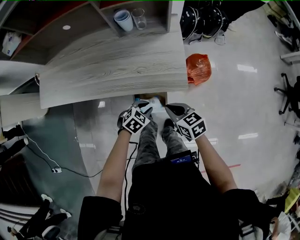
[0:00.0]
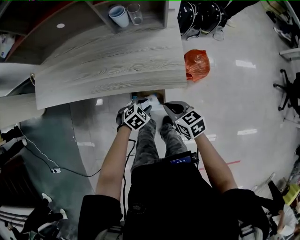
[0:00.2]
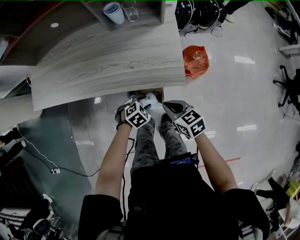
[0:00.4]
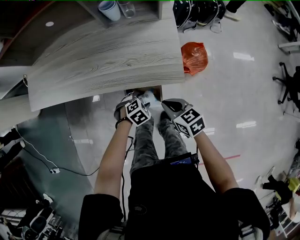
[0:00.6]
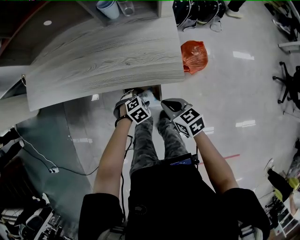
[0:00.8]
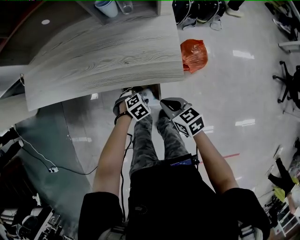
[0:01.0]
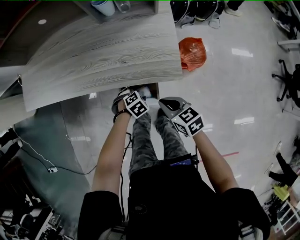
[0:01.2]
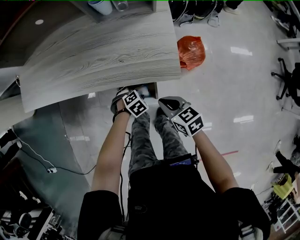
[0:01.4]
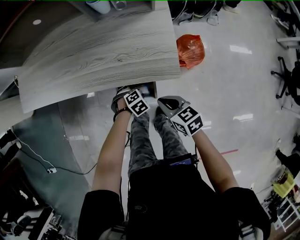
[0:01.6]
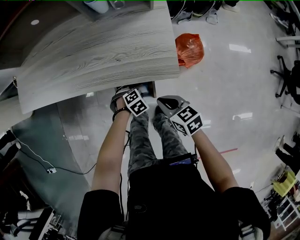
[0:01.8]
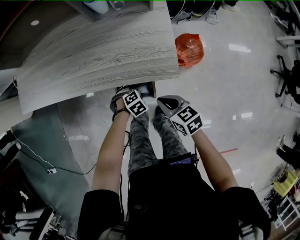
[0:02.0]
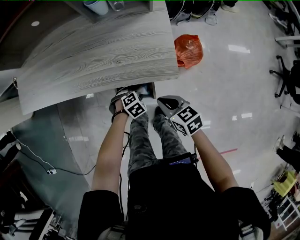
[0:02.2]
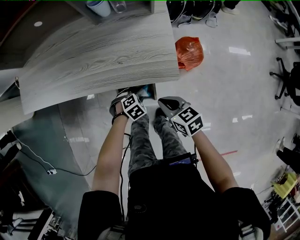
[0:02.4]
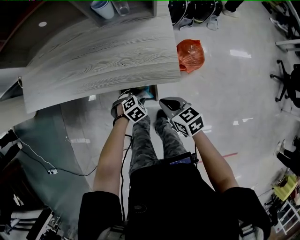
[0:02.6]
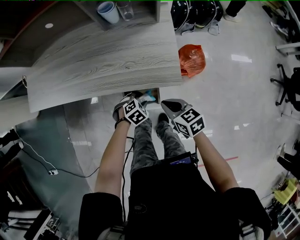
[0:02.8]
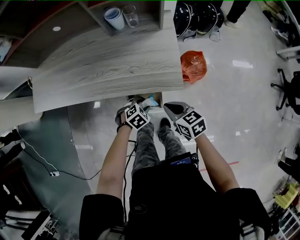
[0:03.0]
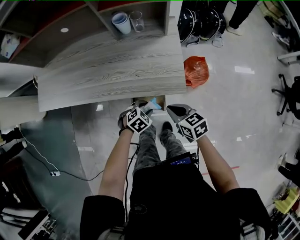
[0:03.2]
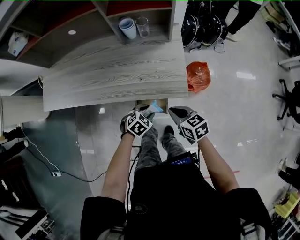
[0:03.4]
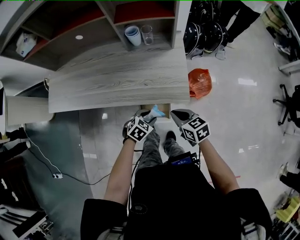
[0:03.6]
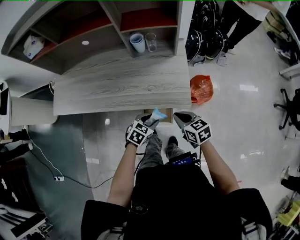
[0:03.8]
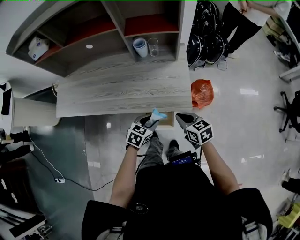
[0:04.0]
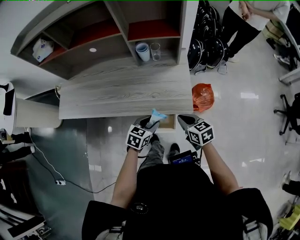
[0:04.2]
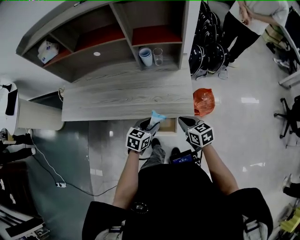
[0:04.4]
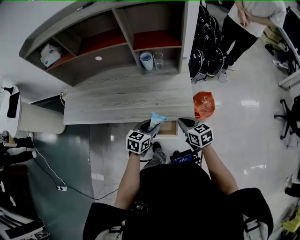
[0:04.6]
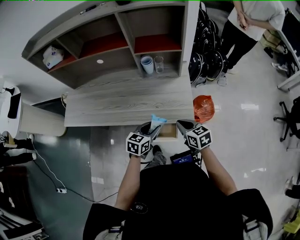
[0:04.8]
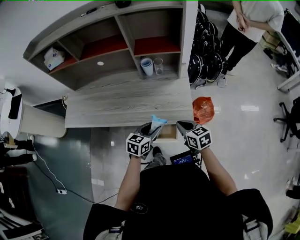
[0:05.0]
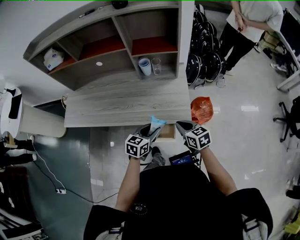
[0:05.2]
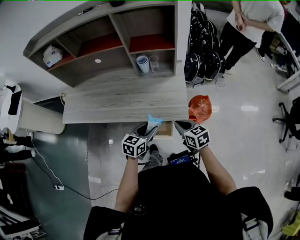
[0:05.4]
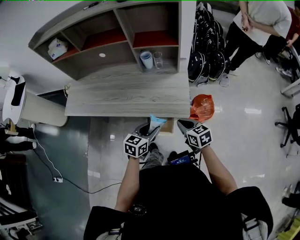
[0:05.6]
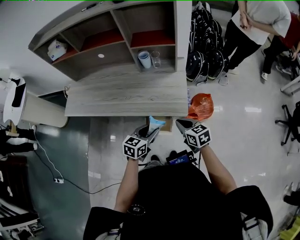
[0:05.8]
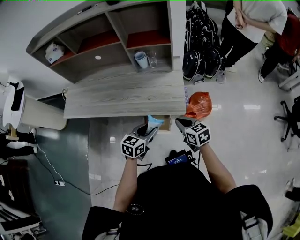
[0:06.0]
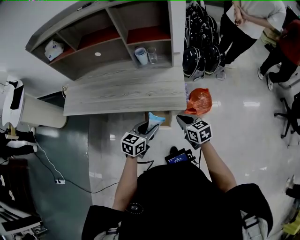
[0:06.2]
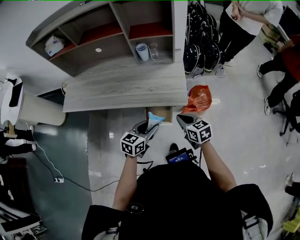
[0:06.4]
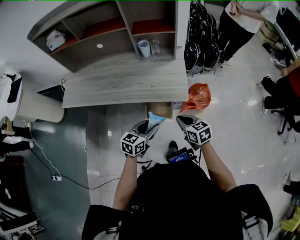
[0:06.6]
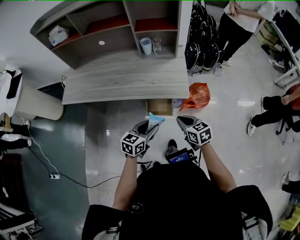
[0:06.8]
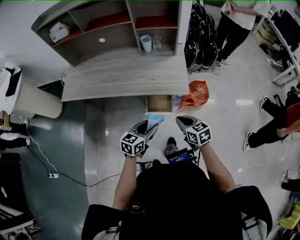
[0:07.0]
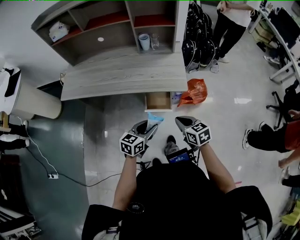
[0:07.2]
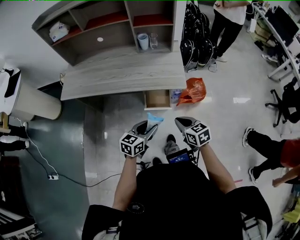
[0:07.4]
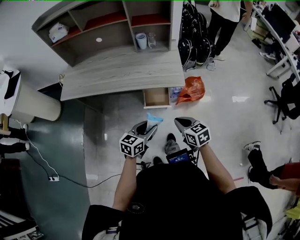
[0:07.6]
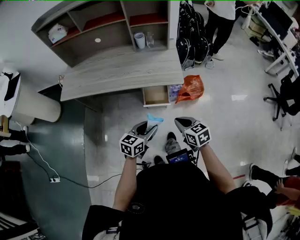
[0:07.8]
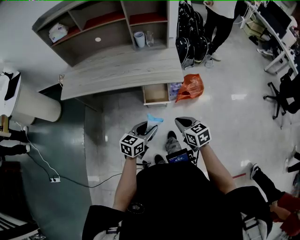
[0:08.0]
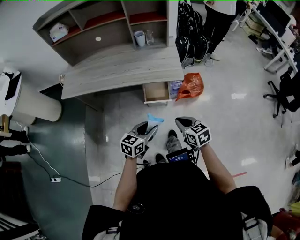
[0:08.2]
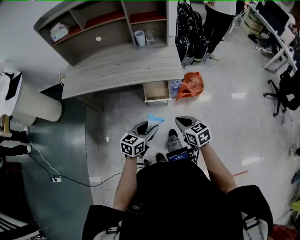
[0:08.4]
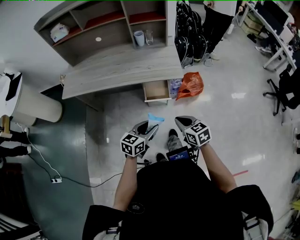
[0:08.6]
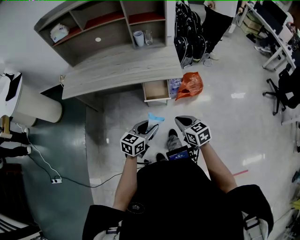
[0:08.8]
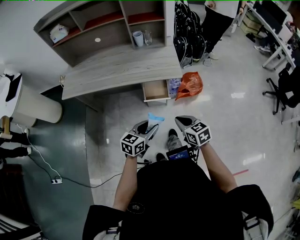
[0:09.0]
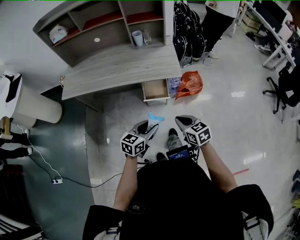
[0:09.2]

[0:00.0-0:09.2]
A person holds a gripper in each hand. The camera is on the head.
0:00.0 to 0:01.6: The left gripper travels downward by approximately 15 cm, turns by roughly 20 degrees, and opens its fingers. The right gripper is displaced downward by approximately 5 cm.
0:01.6 to 0:03.0: The left gripper heads upward, covering about 10 cm.
0:03.0 to 0:04.6: The left gripper shifts roughly 20 cm upward, and angles its fingers upward, by approximately 30 degrees, while the right gripper goes some 10 cm upward.
0:04.6 to 0:06.2: The grippers both shift backward by approximately 5 cm.
0:06.2 to 0:07.6: The two grippers go about 20 cm backward.
0:07.6 to 0:09.2: Both grippers travel together backward, some 5 cm.

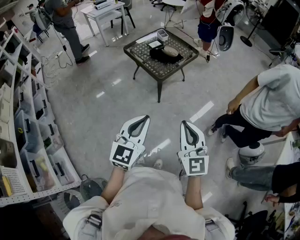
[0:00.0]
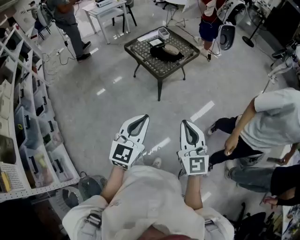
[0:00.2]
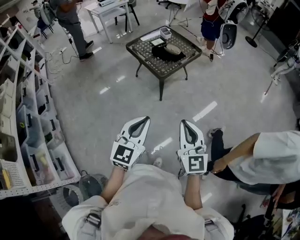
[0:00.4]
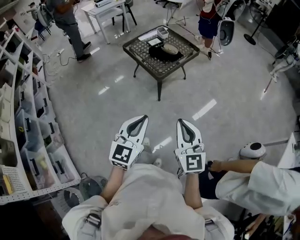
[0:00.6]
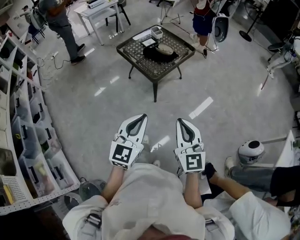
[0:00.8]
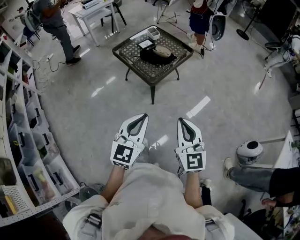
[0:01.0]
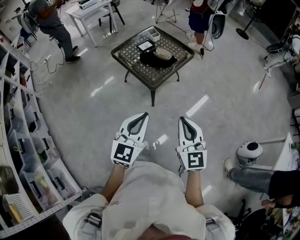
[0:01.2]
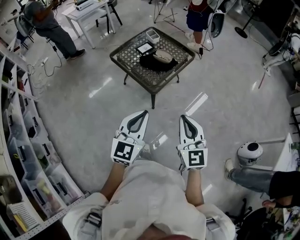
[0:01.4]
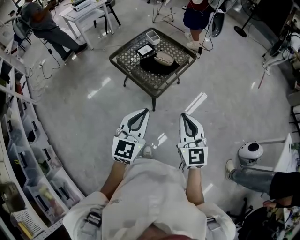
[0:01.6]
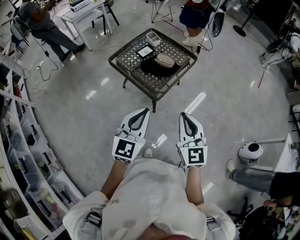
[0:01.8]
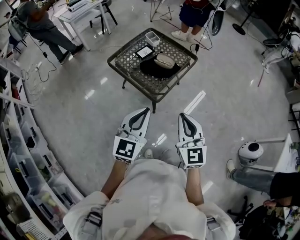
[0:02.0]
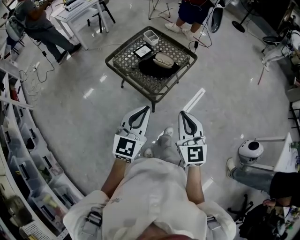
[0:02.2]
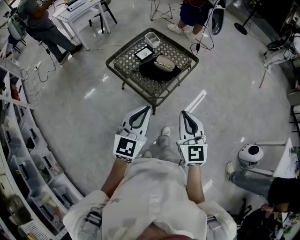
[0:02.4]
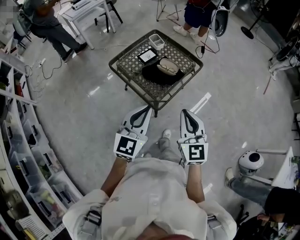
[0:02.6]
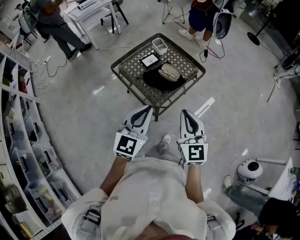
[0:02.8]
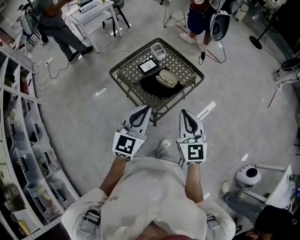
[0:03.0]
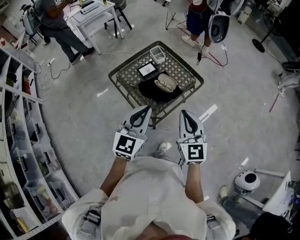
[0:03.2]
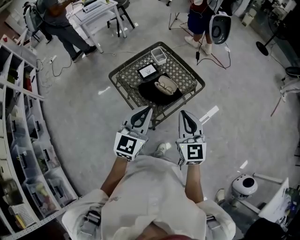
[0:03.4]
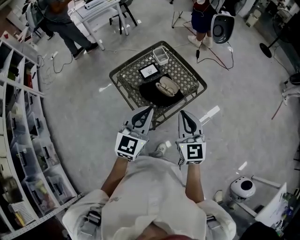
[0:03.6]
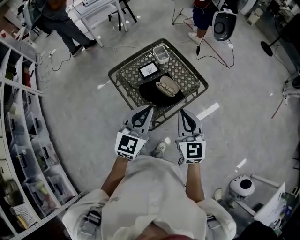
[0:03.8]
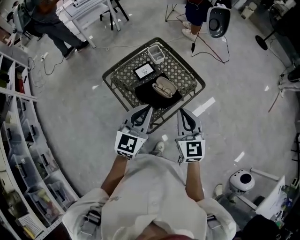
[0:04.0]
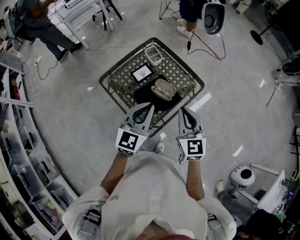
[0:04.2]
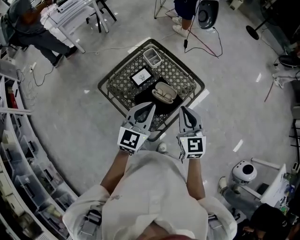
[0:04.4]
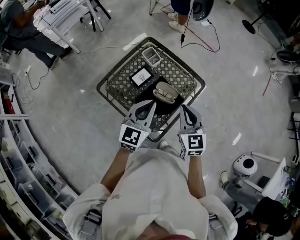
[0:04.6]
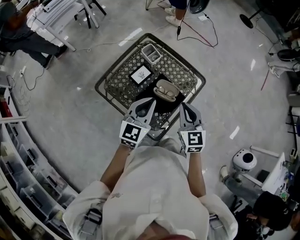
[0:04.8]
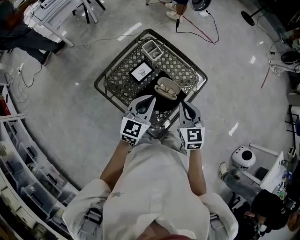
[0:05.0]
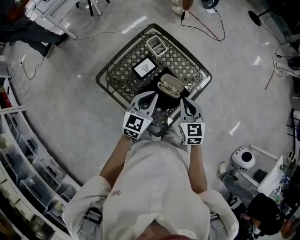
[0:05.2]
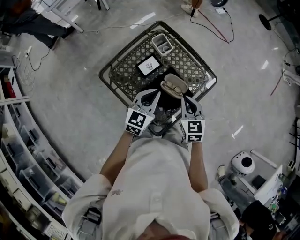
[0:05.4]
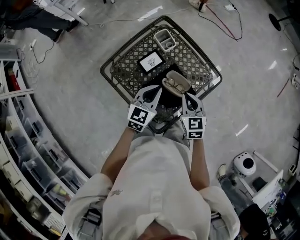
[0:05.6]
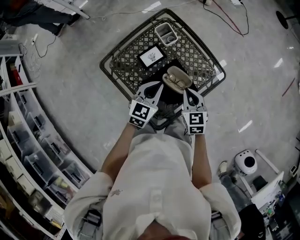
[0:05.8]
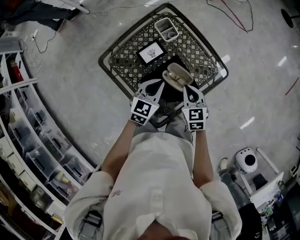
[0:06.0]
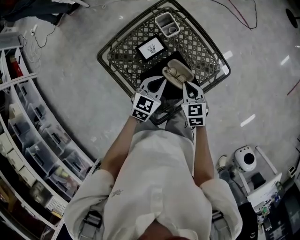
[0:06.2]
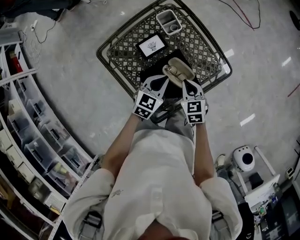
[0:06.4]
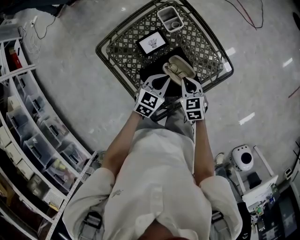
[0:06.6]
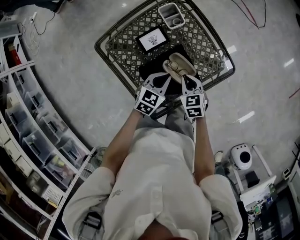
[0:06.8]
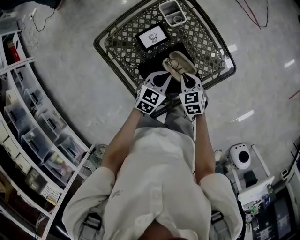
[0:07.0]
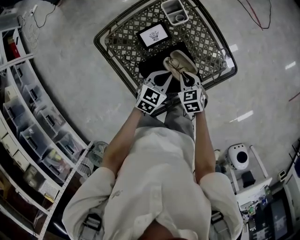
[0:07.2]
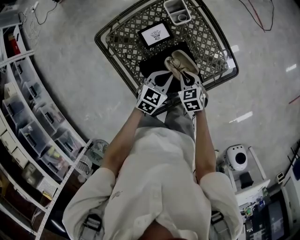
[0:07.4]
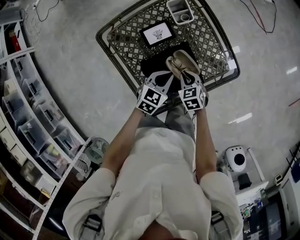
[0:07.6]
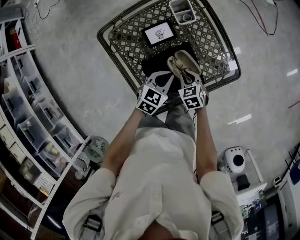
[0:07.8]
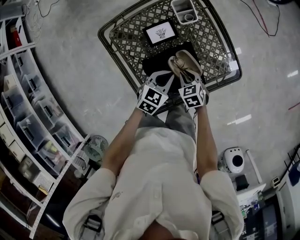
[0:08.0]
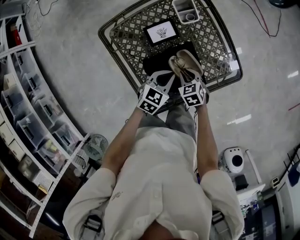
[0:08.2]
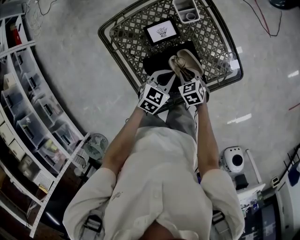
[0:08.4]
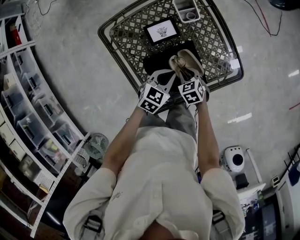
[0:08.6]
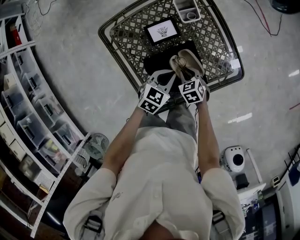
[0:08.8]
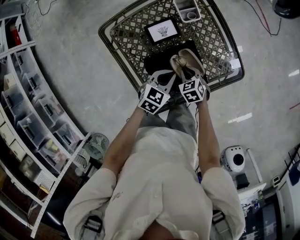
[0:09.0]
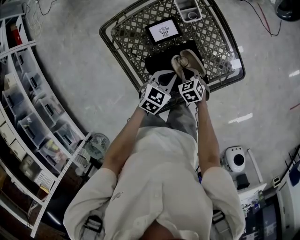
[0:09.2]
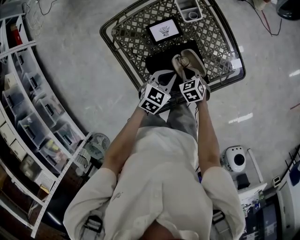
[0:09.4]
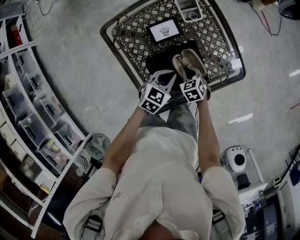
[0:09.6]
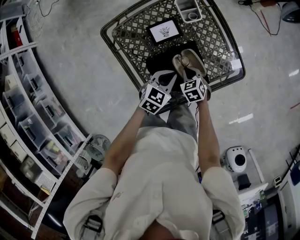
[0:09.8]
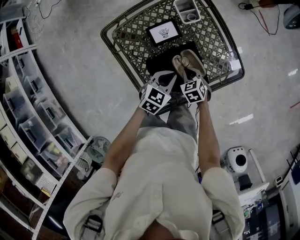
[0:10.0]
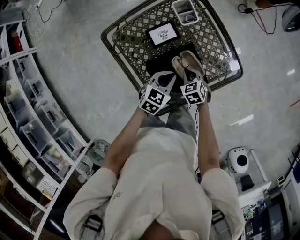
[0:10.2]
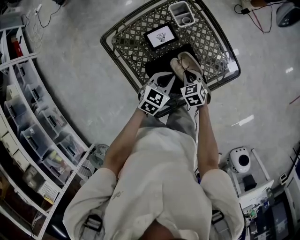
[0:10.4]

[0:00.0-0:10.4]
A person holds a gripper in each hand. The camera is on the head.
0:00.0 to 0:01.4: The two grippers go roughly 25 cm forward.
0:01.4 to 0:03.0: The two grippers go roughly 30 cm forward.
0:03.0 to 0:04.4: The grippers both shift forward by about 20 cm.
0:04.4 to 0:06.0: Both grippers move downward and forward, roughly 25 cm. The right gripper changes its angle by roughly 30 degrees. Meanwhile the left gripper swivels about 20 degrees.
0:06.0 to 0:07.4: Both grippers travel together downward, about 10 cm. The right gripper turns by about 20 degrees.
0:07.4 to 0:09.0: The right gripper shifts approximately 5 cm downward.
0:09.0 to 0:10.4: The grippers stay close to where they were, moving slightly.

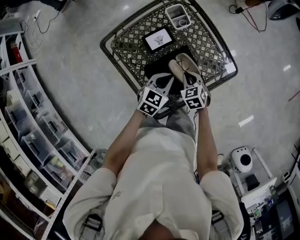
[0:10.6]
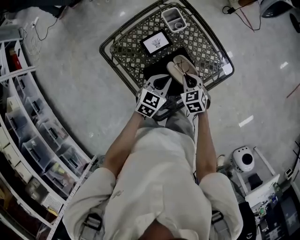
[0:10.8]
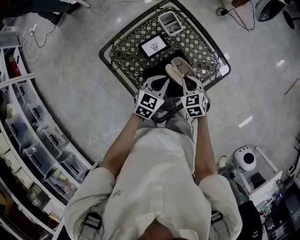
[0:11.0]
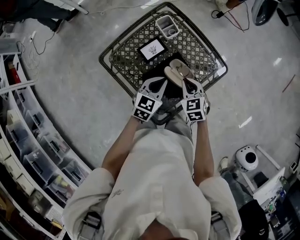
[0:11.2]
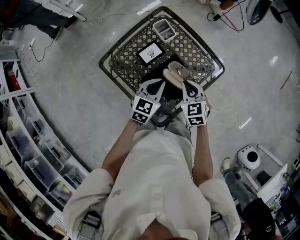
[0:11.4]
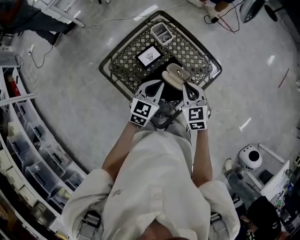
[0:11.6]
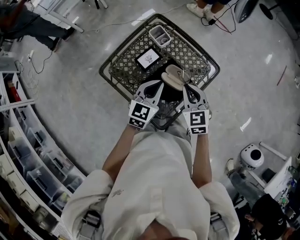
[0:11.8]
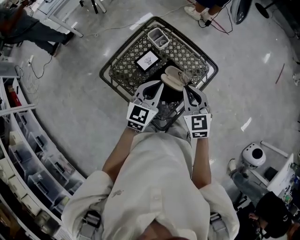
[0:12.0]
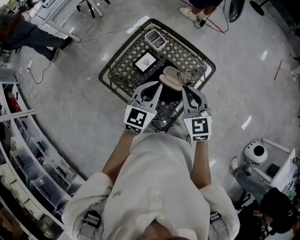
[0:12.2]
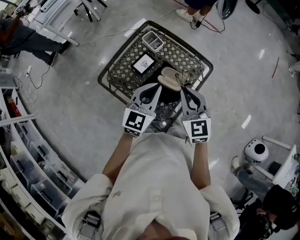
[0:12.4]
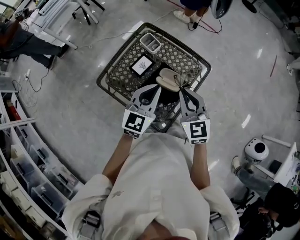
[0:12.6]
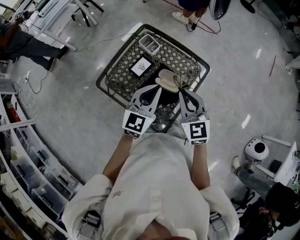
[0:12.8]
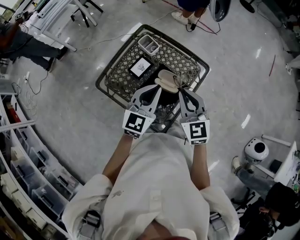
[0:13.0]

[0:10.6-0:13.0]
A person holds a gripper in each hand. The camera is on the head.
0:10.6 to 0:11.8: The right gripper travels upward by approximately 20 cm, and turns by some 30 degrees. The left gripper shifts some 15 cm upward.
0:11.8 to 0:13.0: The two grippers go approximately 10 cm upward.

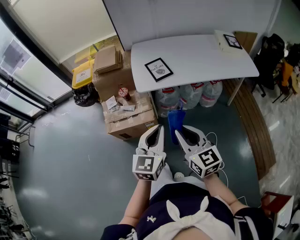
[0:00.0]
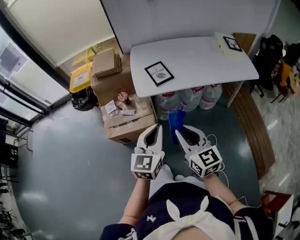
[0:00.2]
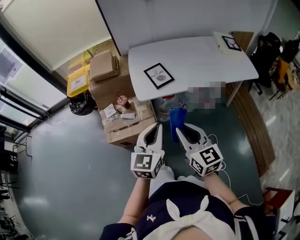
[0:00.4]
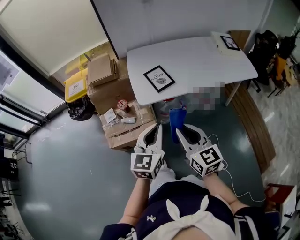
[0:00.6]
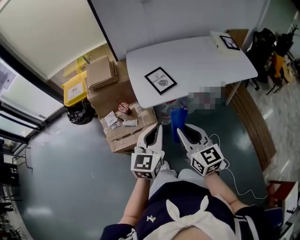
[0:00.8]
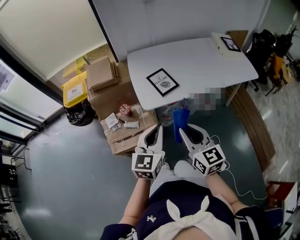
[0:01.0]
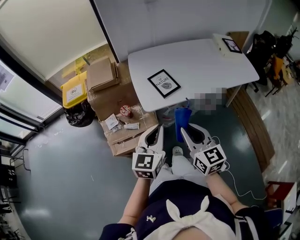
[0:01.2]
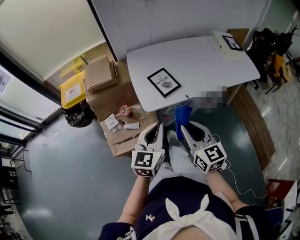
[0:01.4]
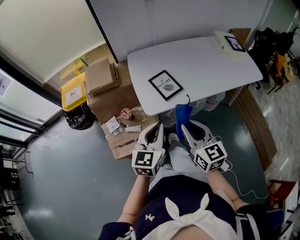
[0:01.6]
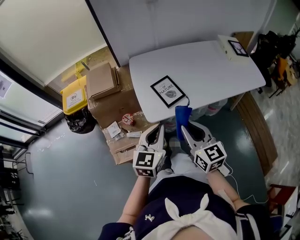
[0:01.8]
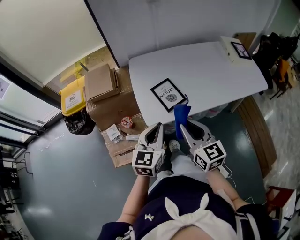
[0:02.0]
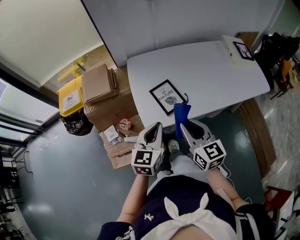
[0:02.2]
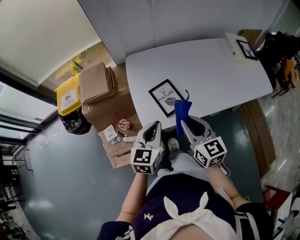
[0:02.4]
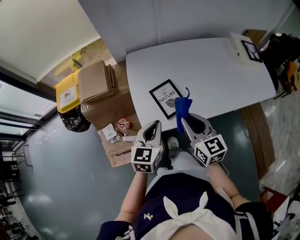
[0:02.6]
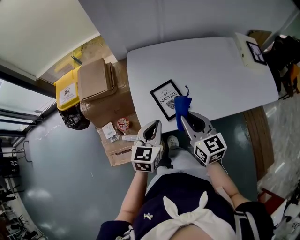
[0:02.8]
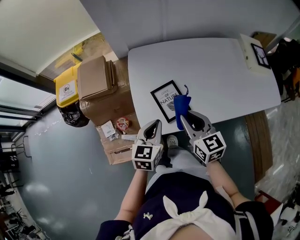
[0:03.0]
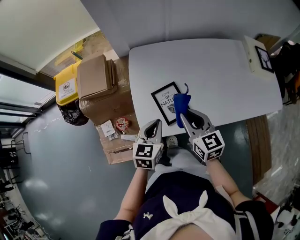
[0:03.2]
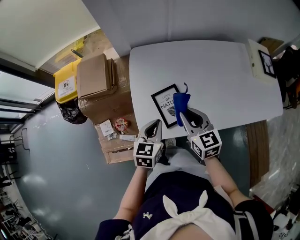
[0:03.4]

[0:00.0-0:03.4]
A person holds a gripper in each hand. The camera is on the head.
0:00.0 to 0:01.6: The right gripper shifts about 20 cm forward. The left gripper is displaced forward and to the left by about 25 cm.
0:01.6 to 0:03.4: The left gripper goes approximately 25 cm forward and downward, and swivels some 20 degrees. Meanwhile the right gripper is displaced forward by about 30 cm.
